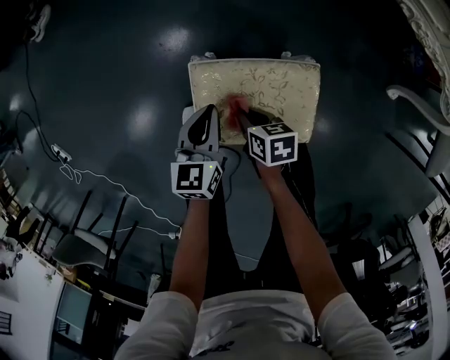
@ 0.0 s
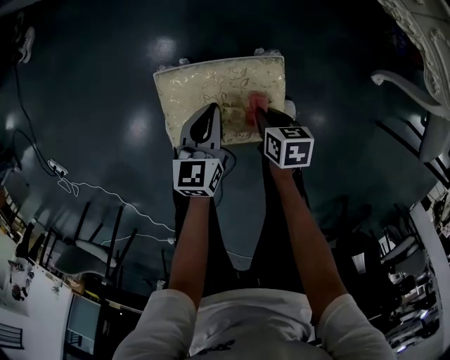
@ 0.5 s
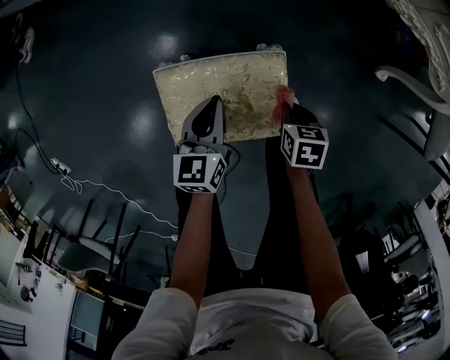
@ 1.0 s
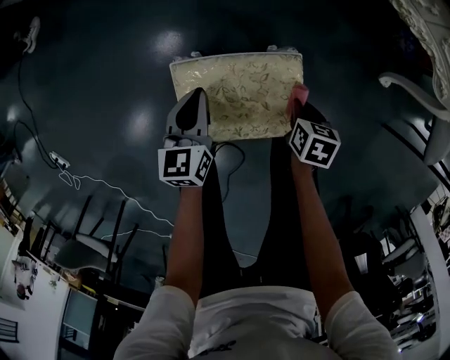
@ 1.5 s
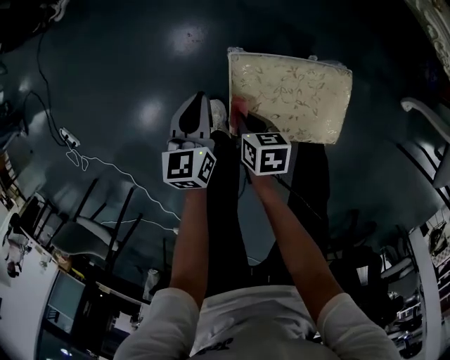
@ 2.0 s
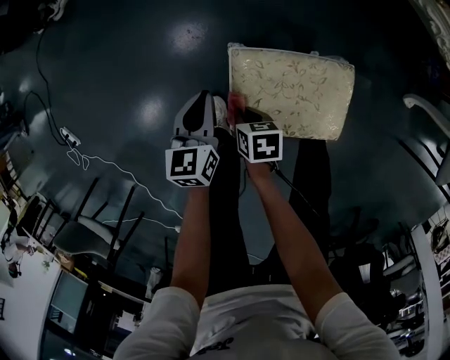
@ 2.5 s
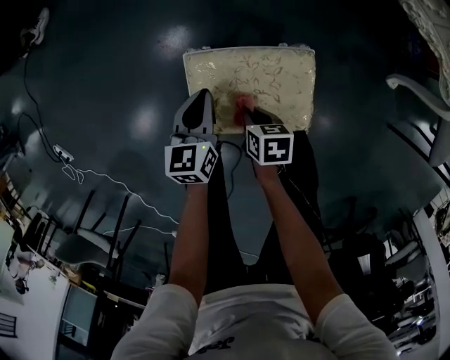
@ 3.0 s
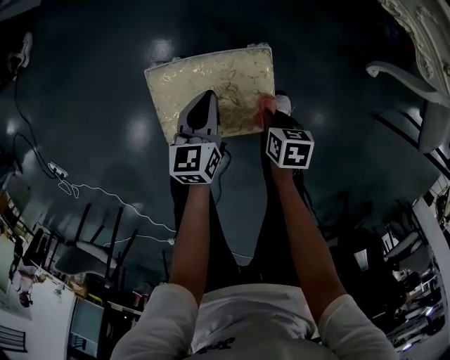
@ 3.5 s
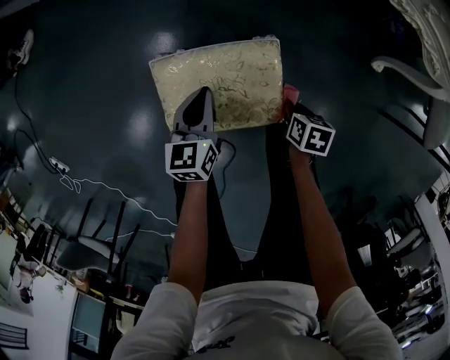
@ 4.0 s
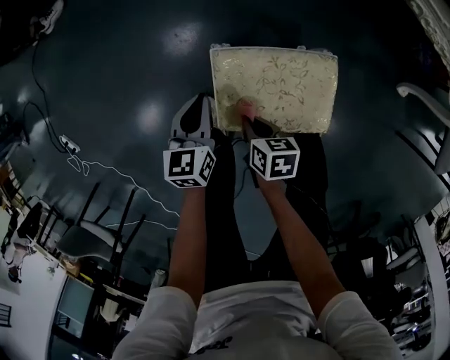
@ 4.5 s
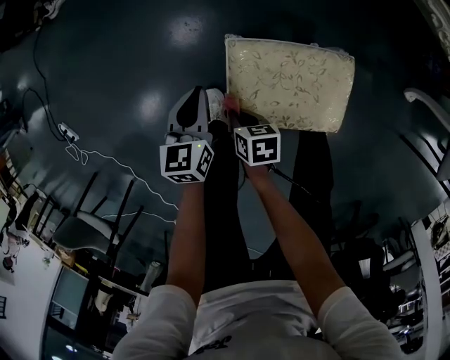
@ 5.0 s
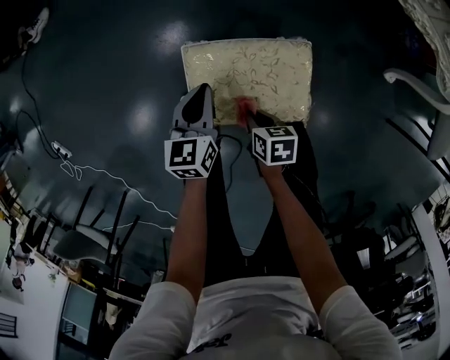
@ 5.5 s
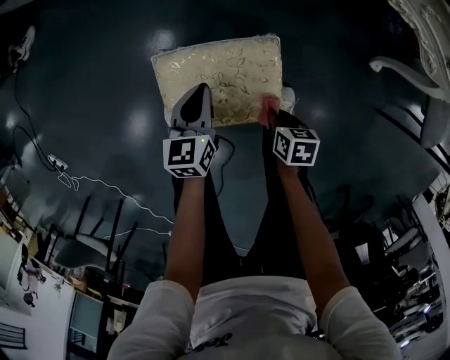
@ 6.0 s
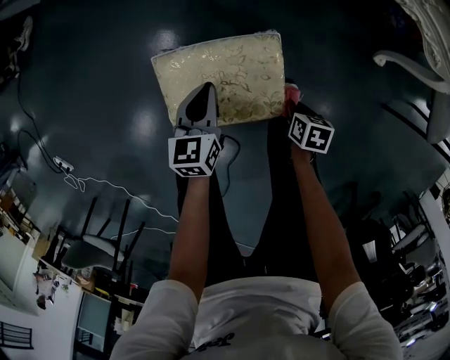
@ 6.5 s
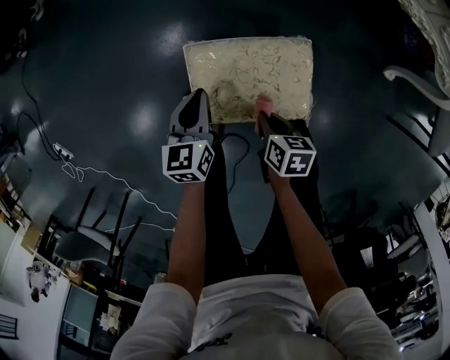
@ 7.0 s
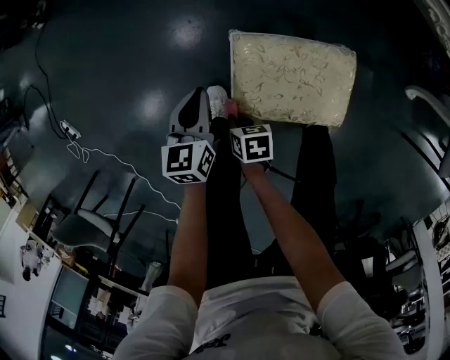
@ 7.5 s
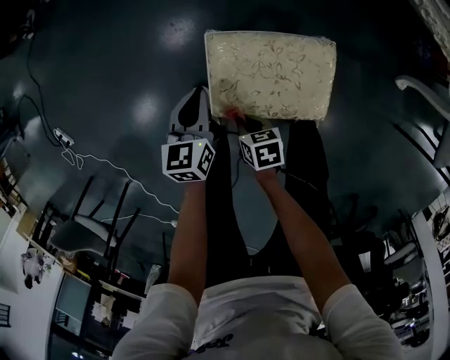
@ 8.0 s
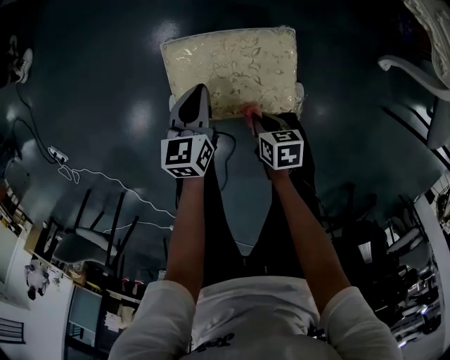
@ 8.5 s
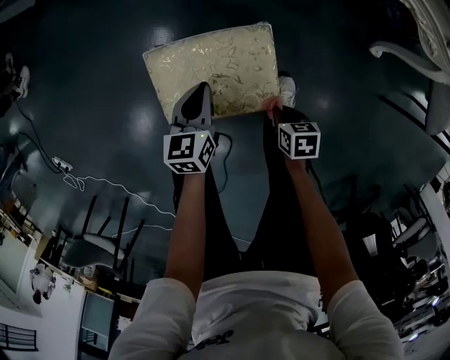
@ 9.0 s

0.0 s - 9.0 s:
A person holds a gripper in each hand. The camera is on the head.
0.0 s - 2.0 s: The left gripper moves some 10 cm.
2.0 s - 4.5 s: The left gripper travels to the right and back again, some 25 cm each way, while the right gripper moves approximately 30 cm to the right and comes back.
7.0 s - 9.0 s: The left gripper moves to the right, approximately 10 cm; the right gripper moves to the right, backward and downward, about 15 cm.

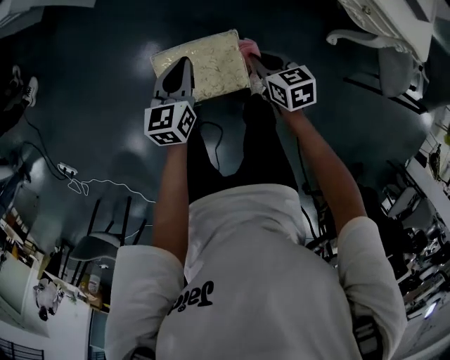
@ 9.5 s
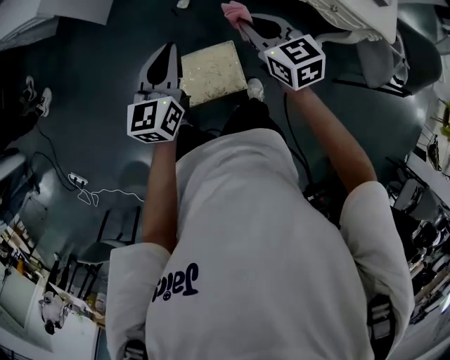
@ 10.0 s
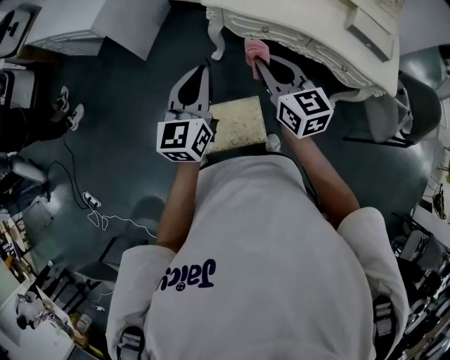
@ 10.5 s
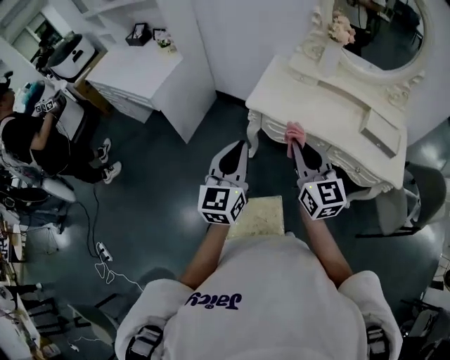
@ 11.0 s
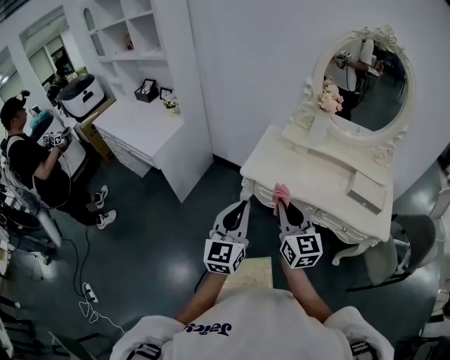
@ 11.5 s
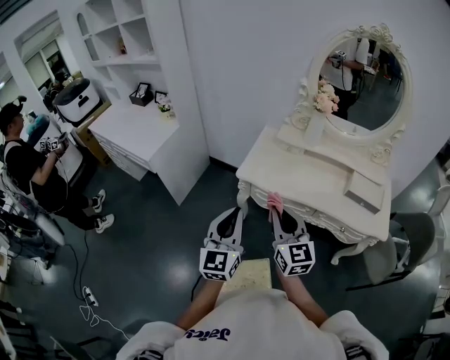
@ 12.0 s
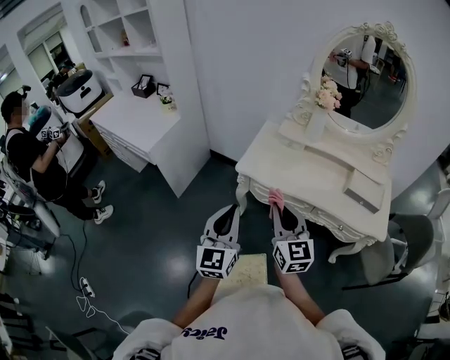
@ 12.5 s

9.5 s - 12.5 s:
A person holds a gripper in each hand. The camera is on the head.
9.5 s - 11.0 s: The grippers both shift upward by approximately 40 cm. The right gripper tips its fingers upward by approximately 40 degrees. Meanwhile the left gripper swivels approximately 30 degrees.
11.0 s - 12.5 s: The grippers stay close to where they were, moving slightly.

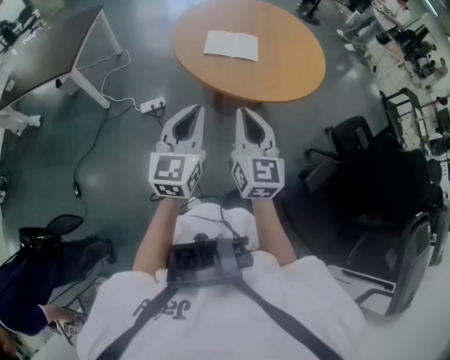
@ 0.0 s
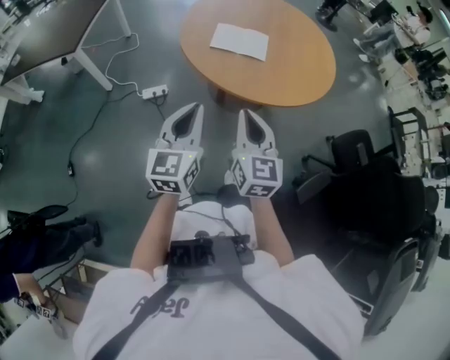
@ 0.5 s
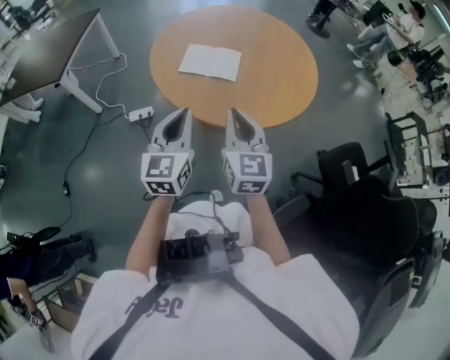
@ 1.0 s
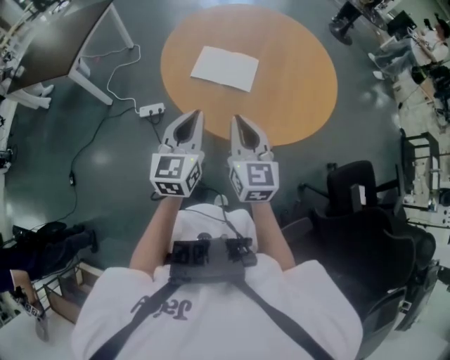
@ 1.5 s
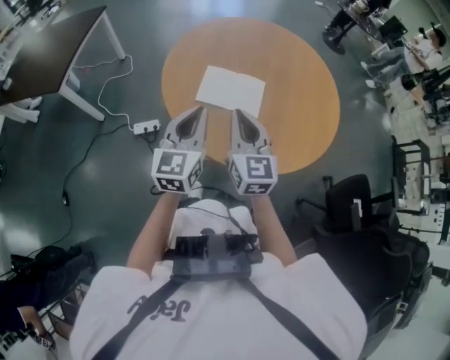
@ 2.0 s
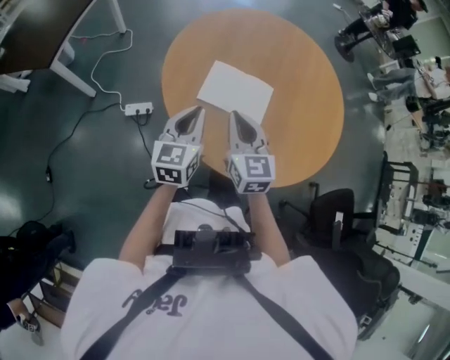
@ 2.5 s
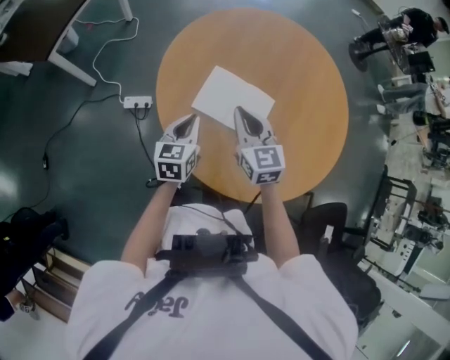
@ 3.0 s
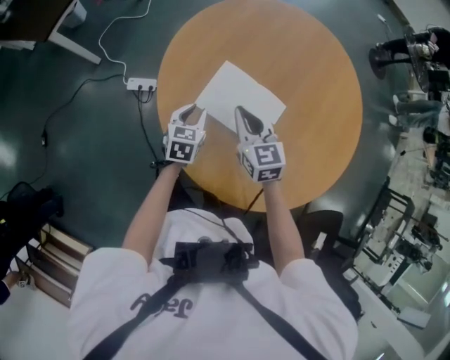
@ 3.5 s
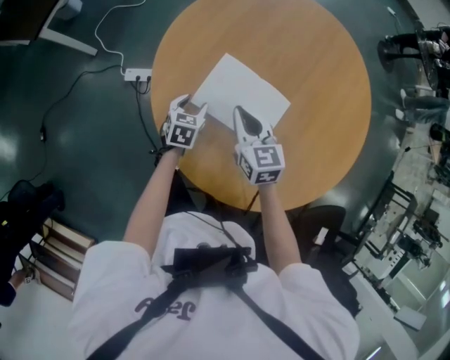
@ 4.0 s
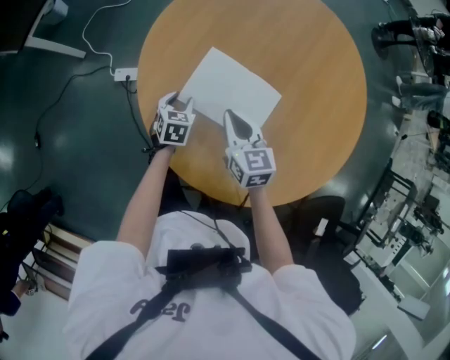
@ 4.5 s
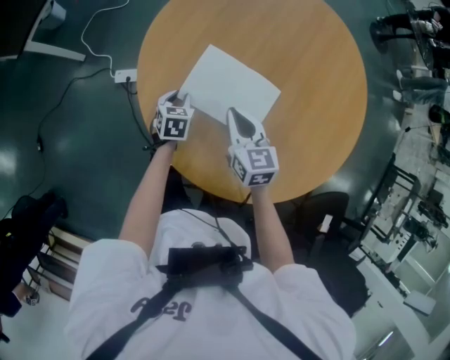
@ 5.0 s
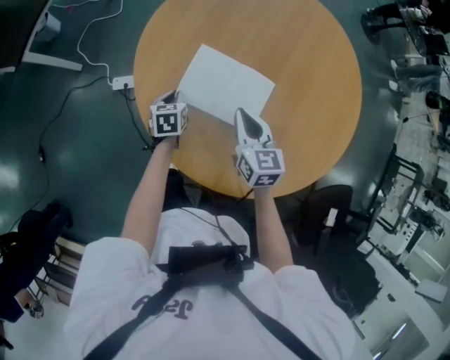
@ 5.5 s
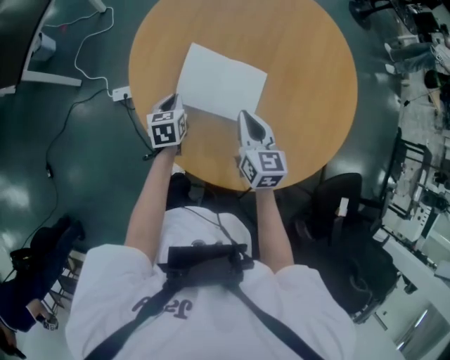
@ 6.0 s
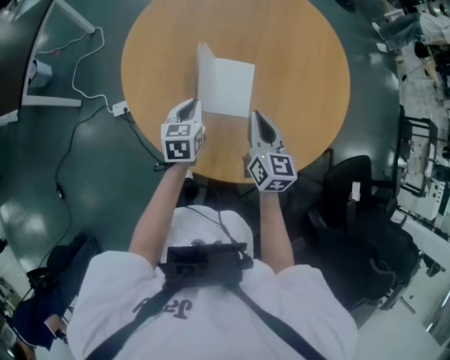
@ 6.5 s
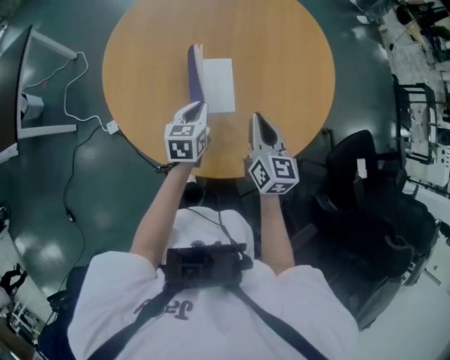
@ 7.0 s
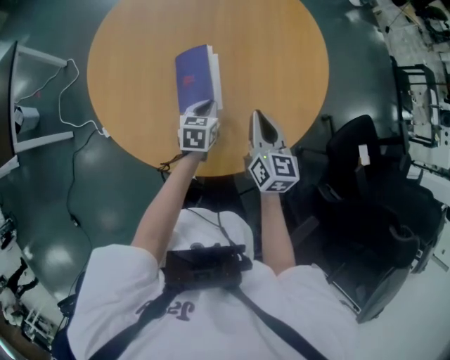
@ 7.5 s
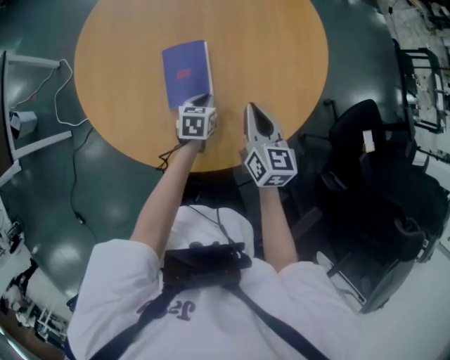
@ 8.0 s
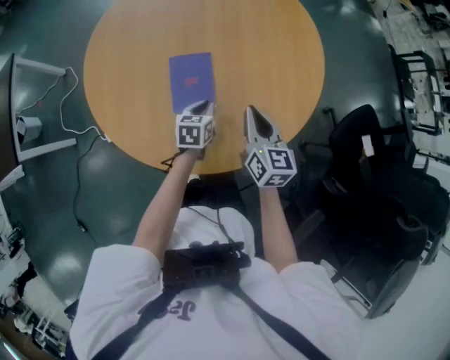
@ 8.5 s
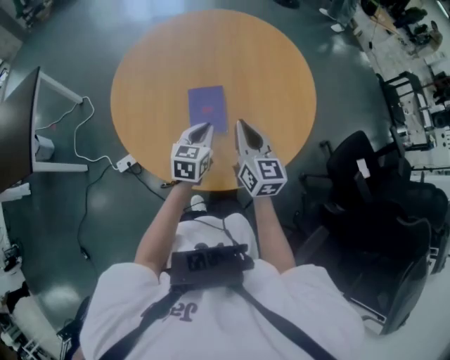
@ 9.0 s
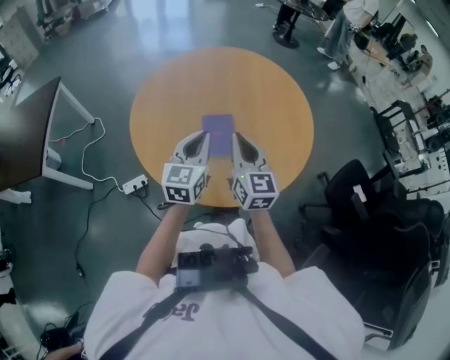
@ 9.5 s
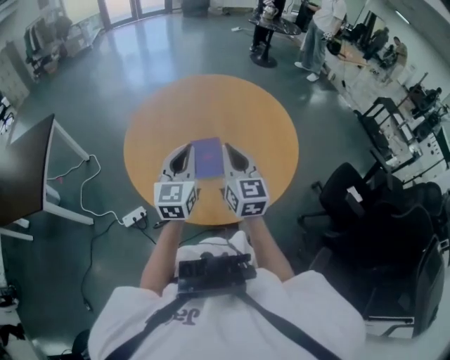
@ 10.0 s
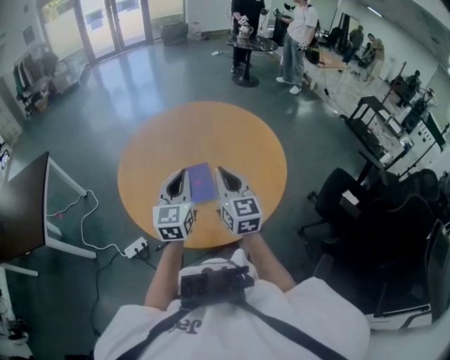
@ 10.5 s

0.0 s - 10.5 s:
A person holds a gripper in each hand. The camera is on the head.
0.0 s - 2.0 s: Both grippers move forward, roughly 30 cm.
2.0 s - 4.0 s: The two grippers go roughly 35 cm downward and forward. The left gripper tips its fingers downward by about 40 degrees, and opens its fingers; the right gripper changes its angle by roughly 30 degrees.
4.0 s - 6.5 s: The right gripper heads to the right and backward, covering about 15 cm, and turns by roughly 40 degrees; the left gripper is displaced upward and to the right by about 15 cm, and closes its fingers.
6.5 s - 8.5 s: The left gripper goes roughly 15 cm to the right and downward, and turns by approximately 20 degrees. The right gripper heads to the right, covering about 10 cm.
8.5 s - 10.5 s: The right gripper heads upward and to the left, covering about 20 cm, and changes its angle by about 20 degrees. Meanwhile the left gripper moves upward, approximately 35 cm, and angles its fingers upward, by some 40 degrees.

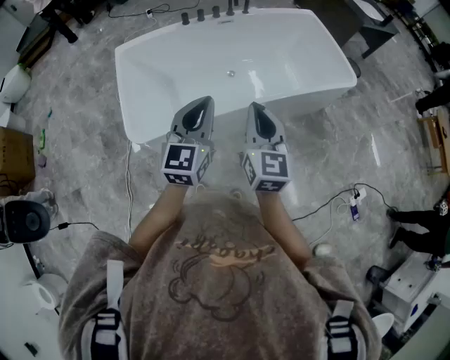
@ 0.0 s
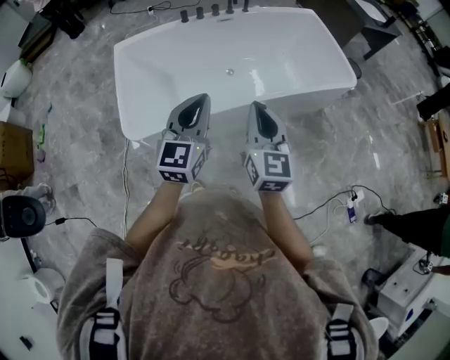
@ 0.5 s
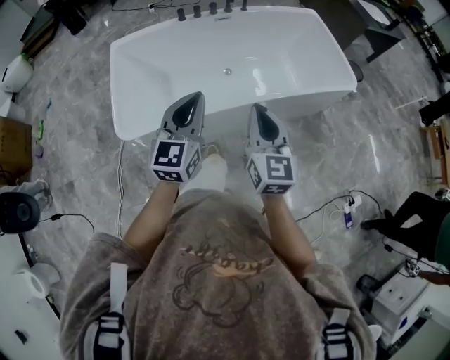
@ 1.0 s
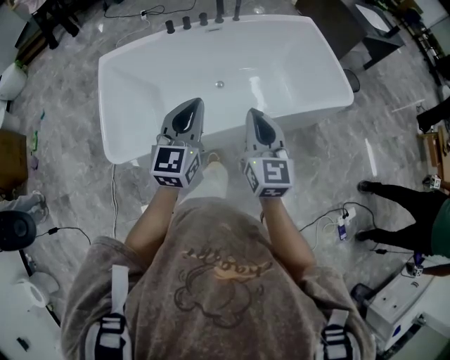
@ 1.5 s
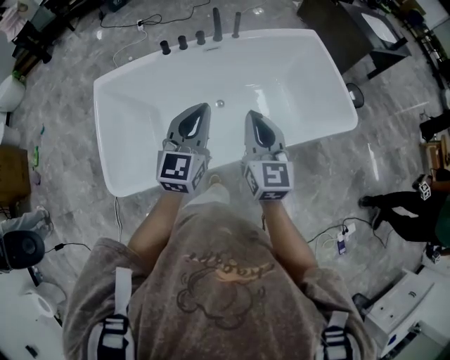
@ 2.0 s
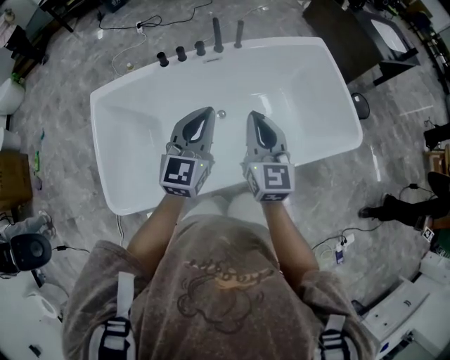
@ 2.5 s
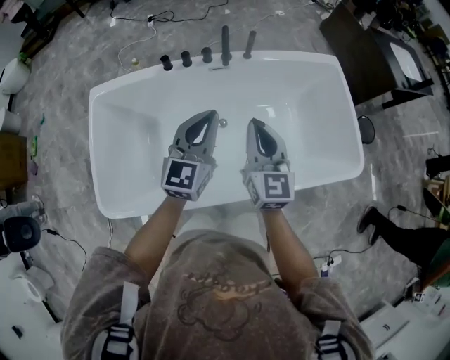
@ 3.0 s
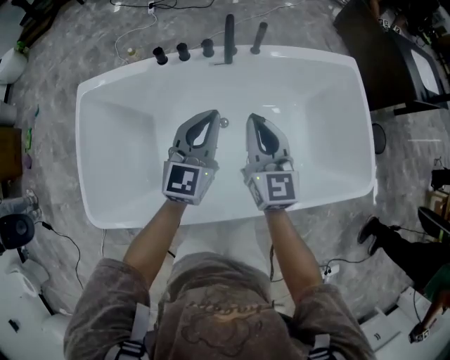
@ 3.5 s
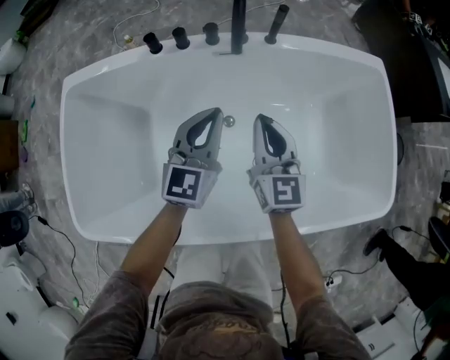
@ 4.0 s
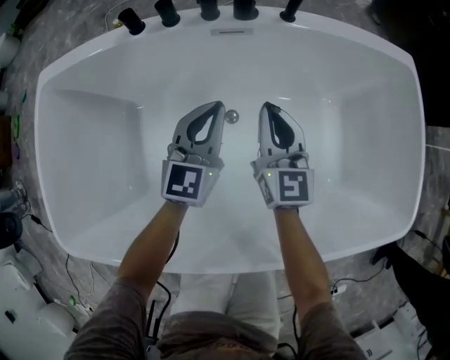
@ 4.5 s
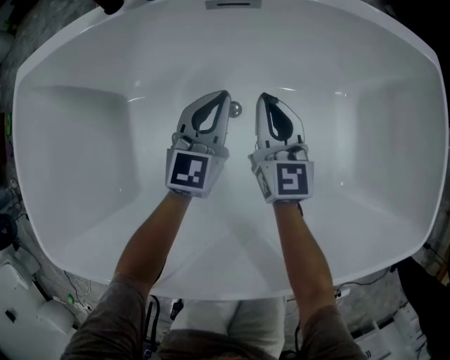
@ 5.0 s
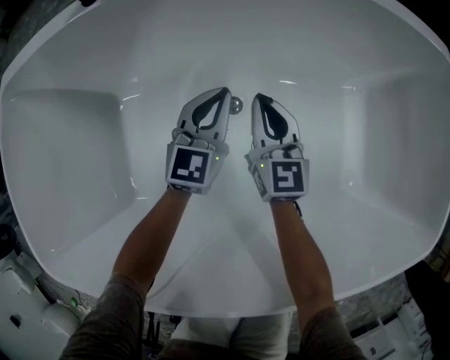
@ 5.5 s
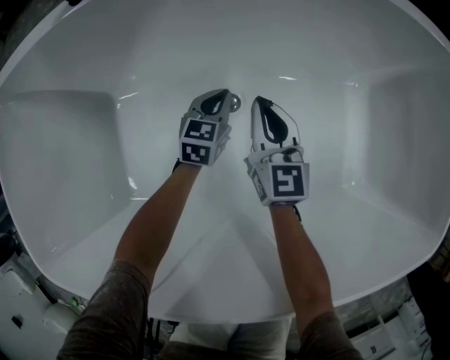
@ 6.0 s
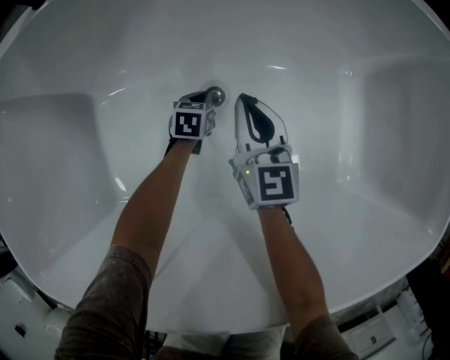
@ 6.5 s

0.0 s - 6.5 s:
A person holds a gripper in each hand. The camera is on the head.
0.0 s - 2.0 s: Both grippers travel together forward, roughly 25 cm.
2.0 s - 4.5 s: The two grippers go approximately 50 cm downward and forward.
4.5 s - 6.5 s: The left gripper moves downward, roughly 50 cm, and tips its fingers downward by approximately 40 degrees; the right gripper is displaced downward by about 25 cm.
